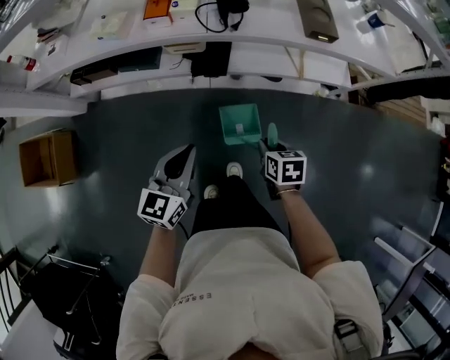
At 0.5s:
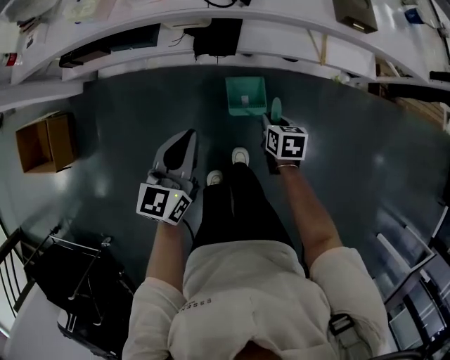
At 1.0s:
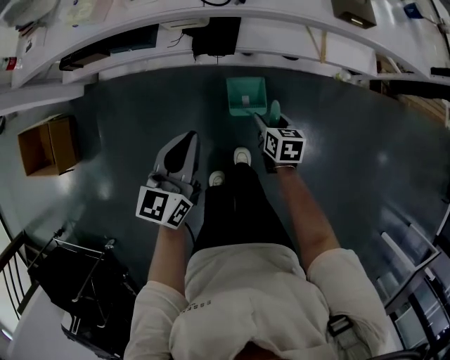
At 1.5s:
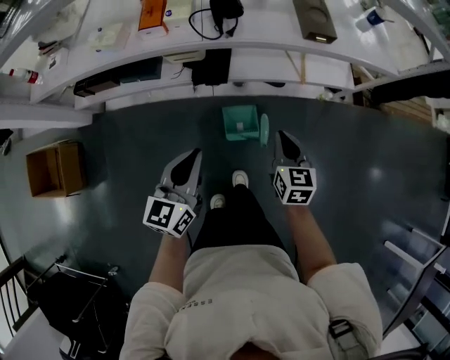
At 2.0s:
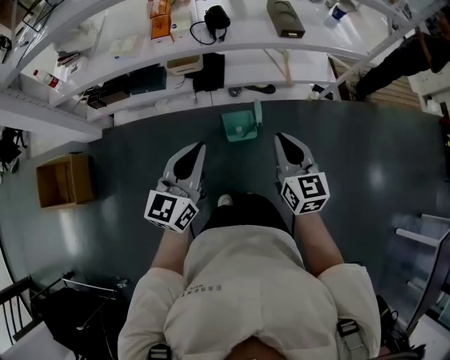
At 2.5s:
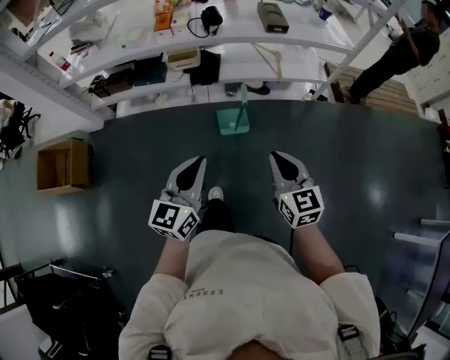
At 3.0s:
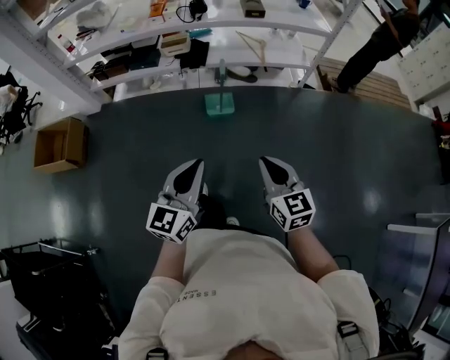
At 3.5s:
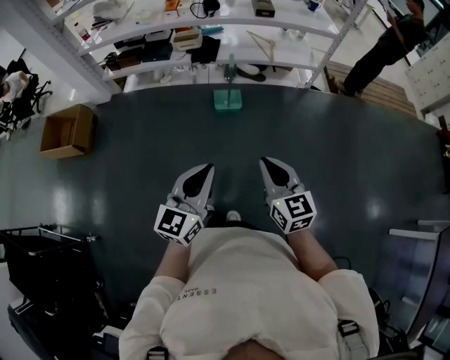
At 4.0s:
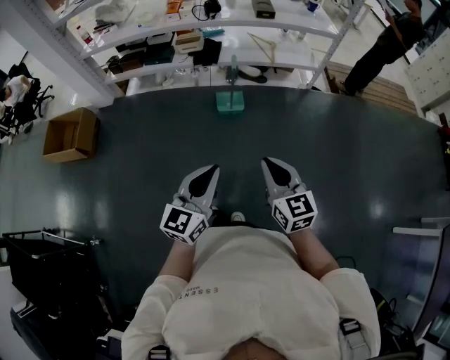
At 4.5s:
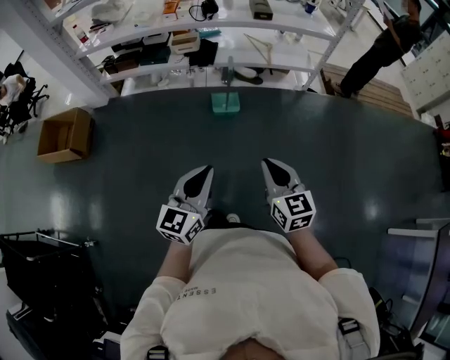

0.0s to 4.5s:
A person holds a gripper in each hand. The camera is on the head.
0.0s to 2.0s: The two grippers go roughly 20 cm upward and backward. The right gripper tips its fingers upward by about 40 degrees, and opens, then closes once more.
2.0s to 4.5s: The two grippers travel together, backward, approximately 50 cm.

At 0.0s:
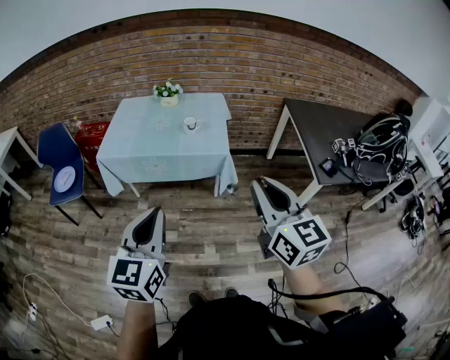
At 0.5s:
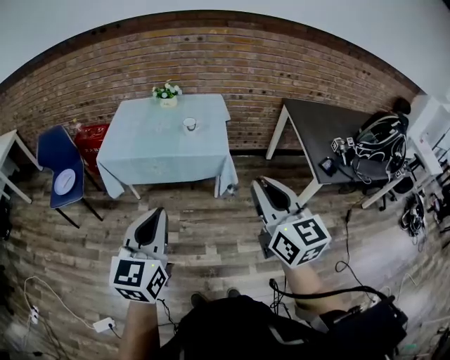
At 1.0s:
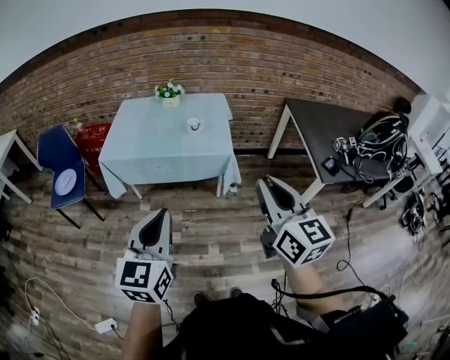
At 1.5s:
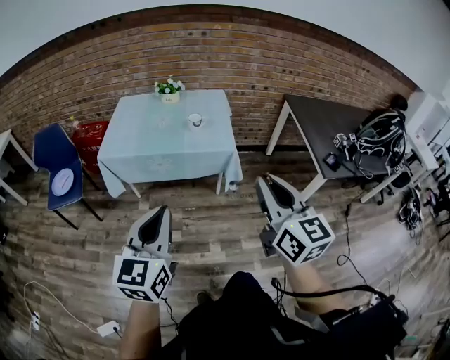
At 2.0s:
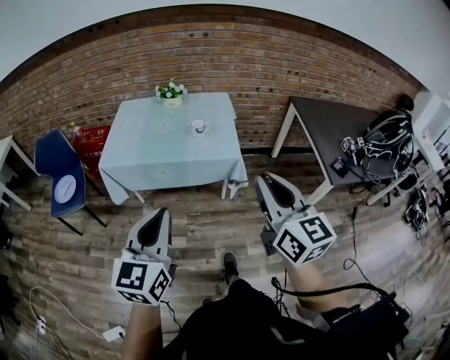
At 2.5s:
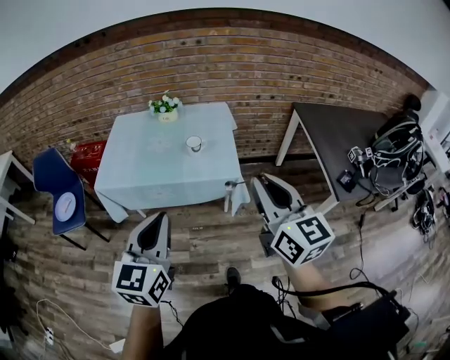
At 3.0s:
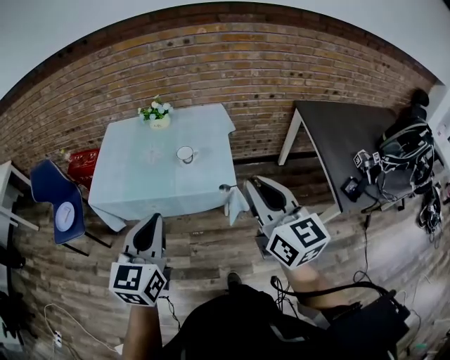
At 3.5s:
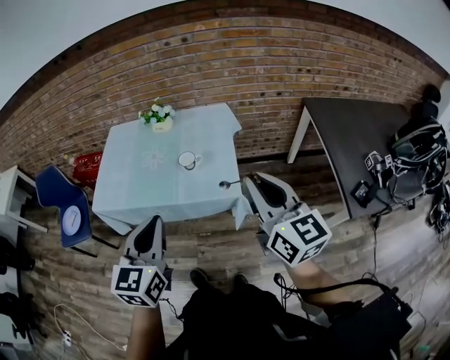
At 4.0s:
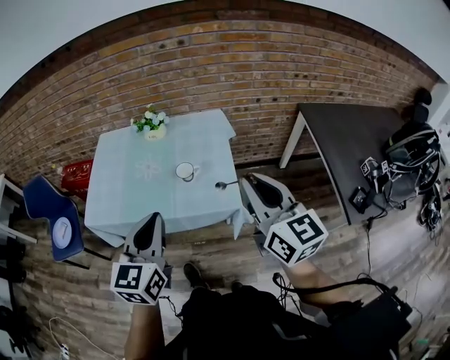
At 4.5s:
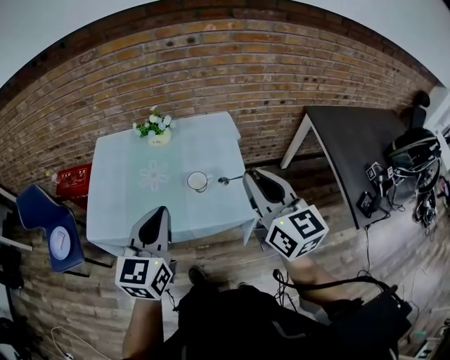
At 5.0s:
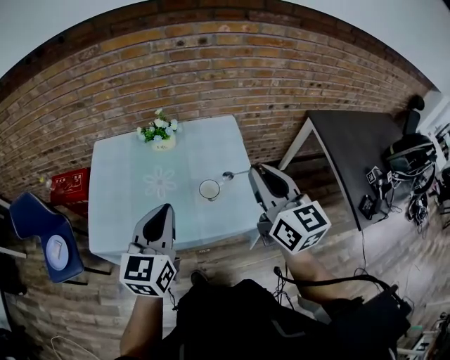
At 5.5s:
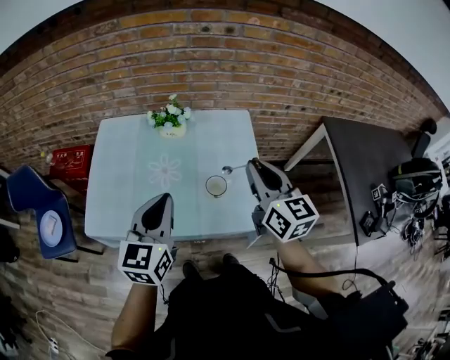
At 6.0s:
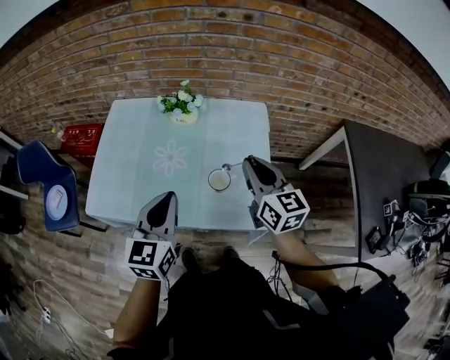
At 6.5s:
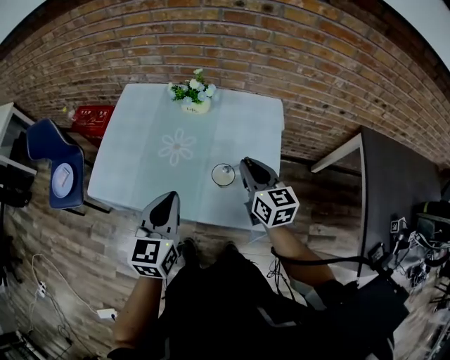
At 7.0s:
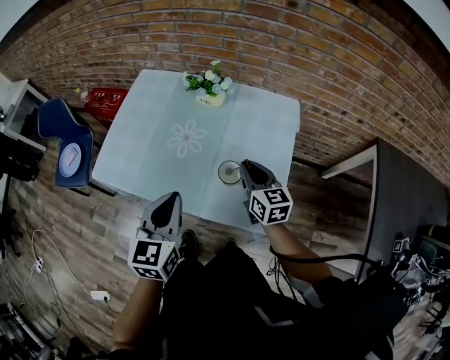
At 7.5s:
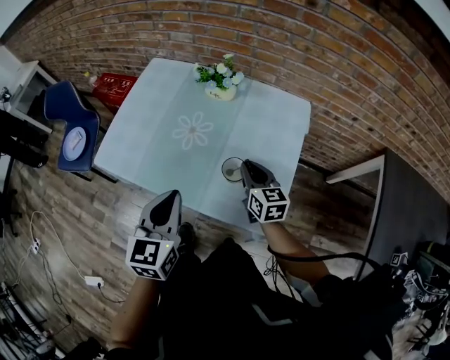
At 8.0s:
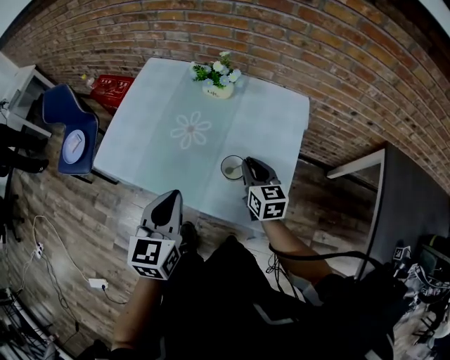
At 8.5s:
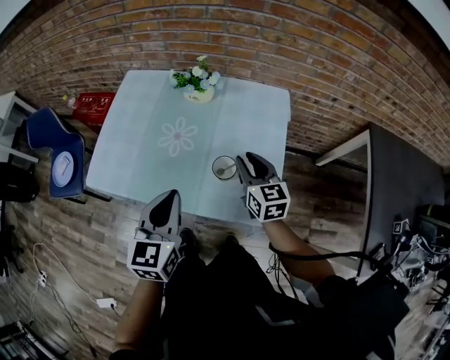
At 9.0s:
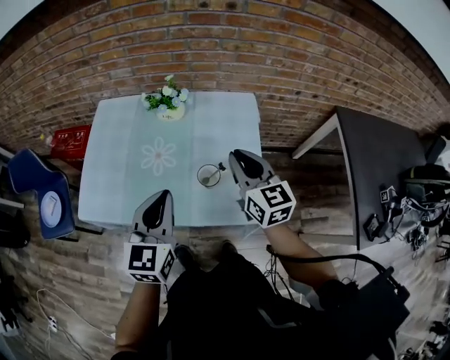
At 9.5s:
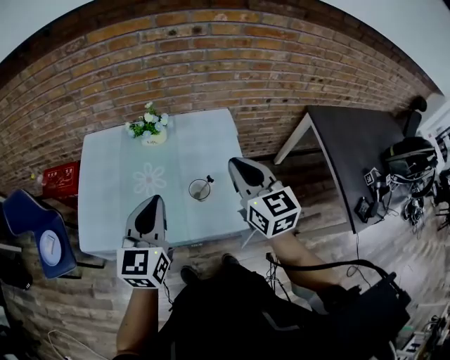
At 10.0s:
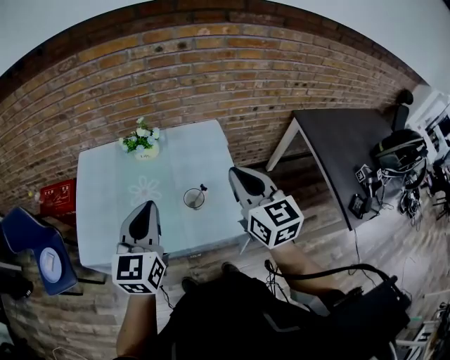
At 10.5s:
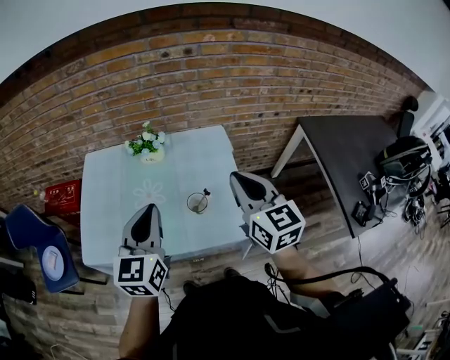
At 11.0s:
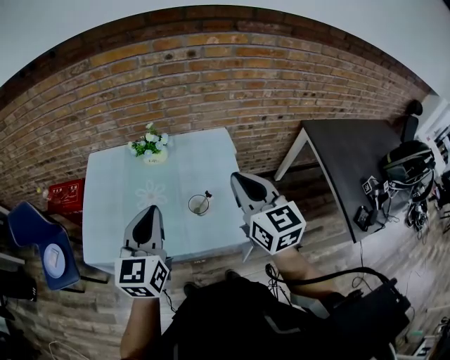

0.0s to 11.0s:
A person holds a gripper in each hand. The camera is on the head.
0.0s to 2.0s: The right gripper travels forward and to the left by about 10 cm, while the left gripper is displaced forward by about 5 cm.
2.0s to 3.5s: Both grippers move forward, approximately 25 cm.
3.5s to 5.5s: The two grippers go some 30 cm forward and to the left.
5.5s to 7.5s: The right gripper is displaced downward by about 25 cm, and swivels some 30 degrees. The left gripper heads downward, covering some 10 cm, and changes its angle by roughly 30 degrees.
7.5s to 9.0s: The left gripper changes place by roughly 5 cm. The right gripper moves upward, some 15 cm.
9.0s to 11.0s: The right gripper shifts about 15 cm upward and backward; the left gripper goes approximately 5 cm upward.

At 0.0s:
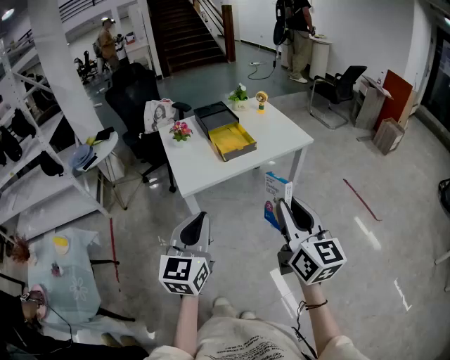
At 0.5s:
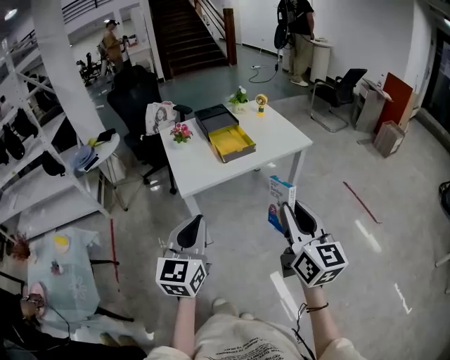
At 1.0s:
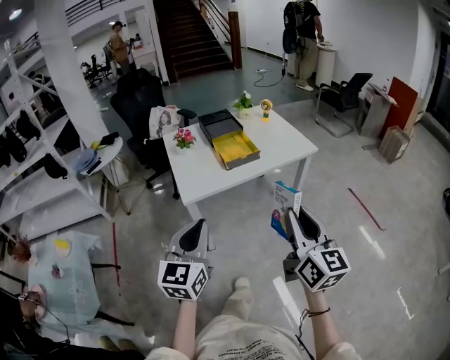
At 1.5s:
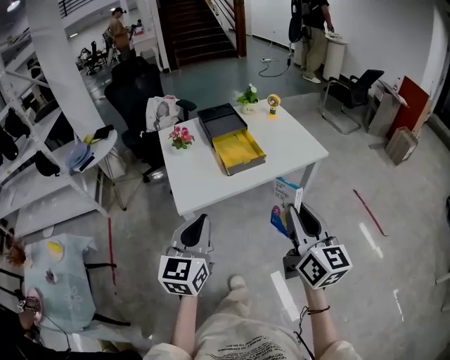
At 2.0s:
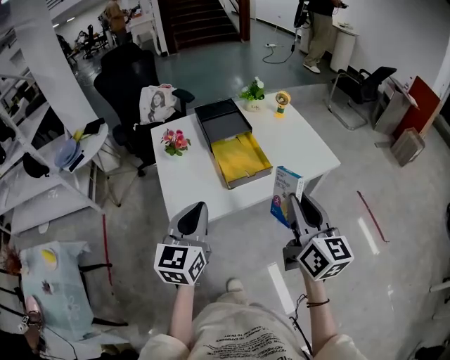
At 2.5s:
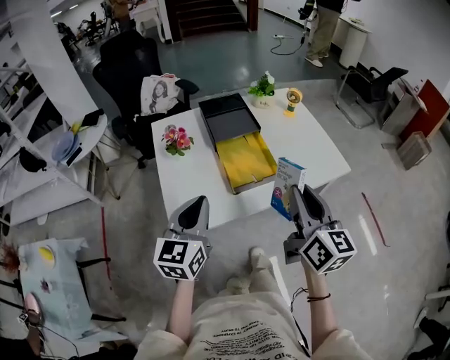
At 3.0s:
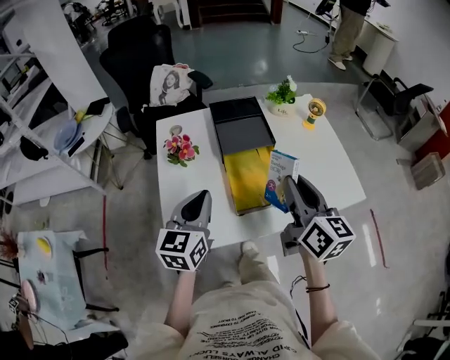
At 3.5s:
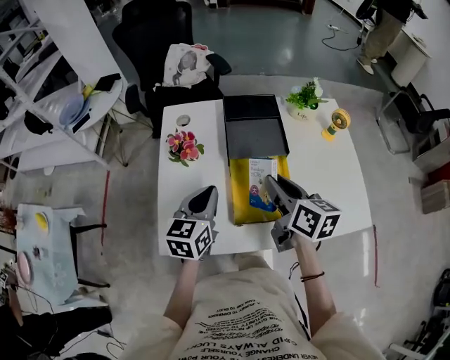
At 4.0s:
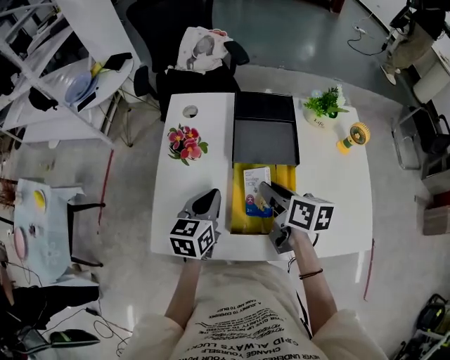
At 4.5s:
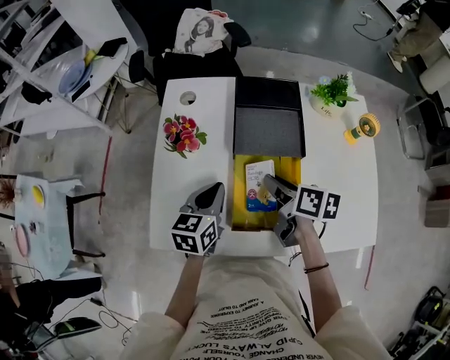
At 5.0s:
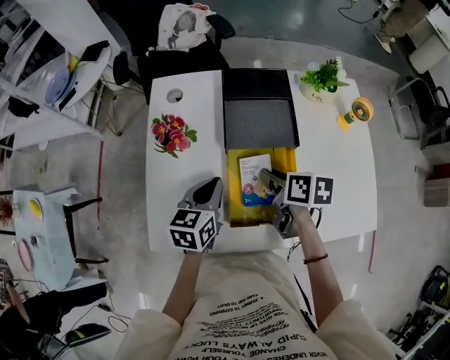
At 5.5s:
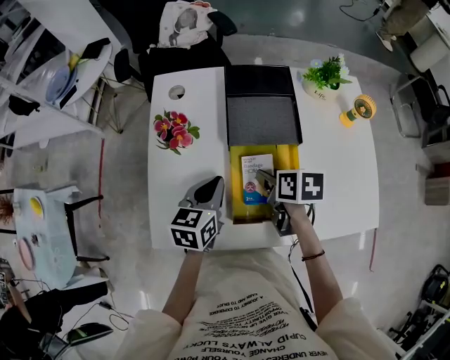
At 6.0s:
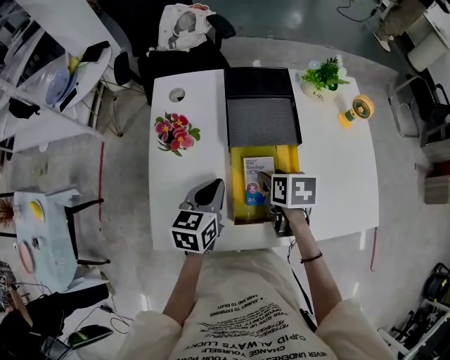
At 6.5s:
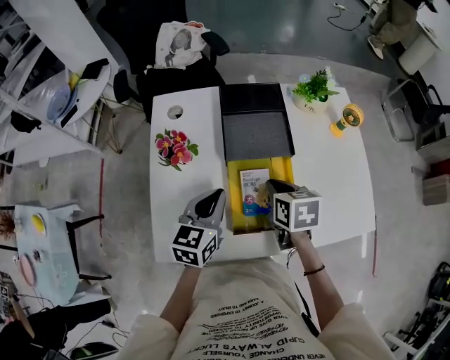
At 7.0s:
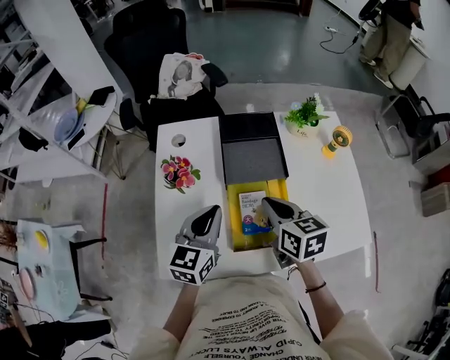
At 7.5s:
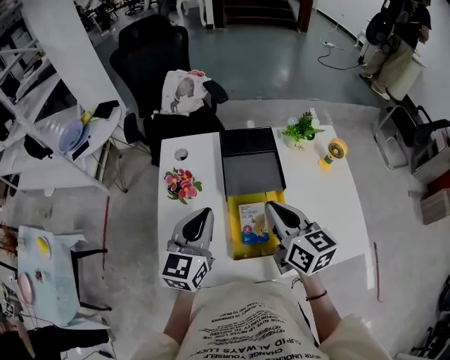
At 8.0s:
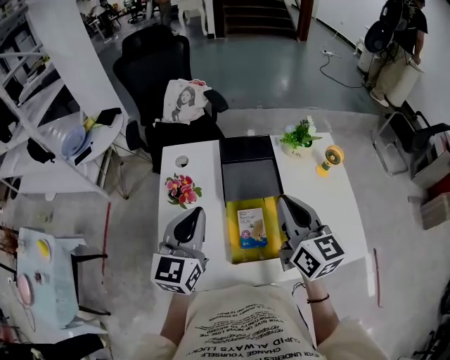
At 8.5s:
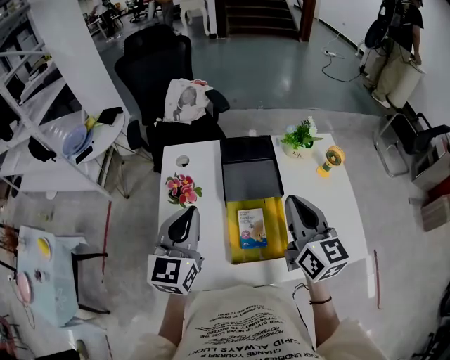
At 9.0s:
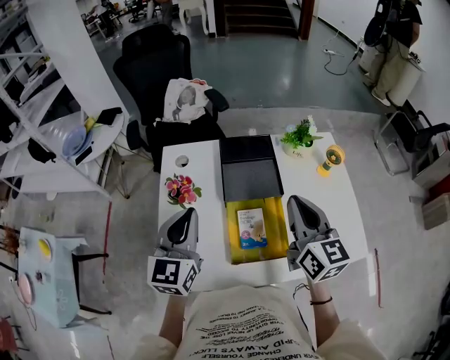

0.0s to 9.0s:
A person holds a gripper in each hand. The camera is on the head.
0.0s to 2.0s: Both grippers travel together forward, approximately 25 cm.
2.0s to 4.5s: The right gripper shifts by about 40 cm, and tips its fingers downward by about 30 degrees, while the left gripper shifts by roughly 30 cm, and changes its angle by approximately 30 degrees.
4.5s to 7.0s: The grippers both shift upward by approximately 10 cm. The left gripper rotates roughly 20 degrees. Meanwhile the right gripper changes its angle by about 30 degrees, and opens, then closes once more.
7.0s to 9.0s: The right gripper is displaced upward and to the right by roughly 15 cm, and turns by about 30 degrees. The left gripper moves upward, roughly 10 cm.

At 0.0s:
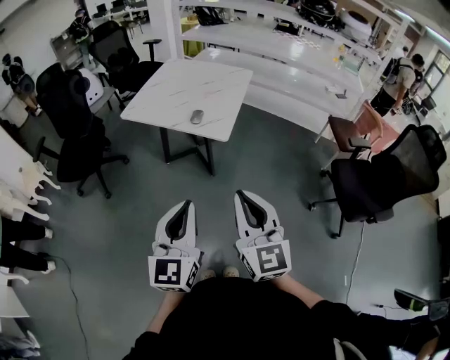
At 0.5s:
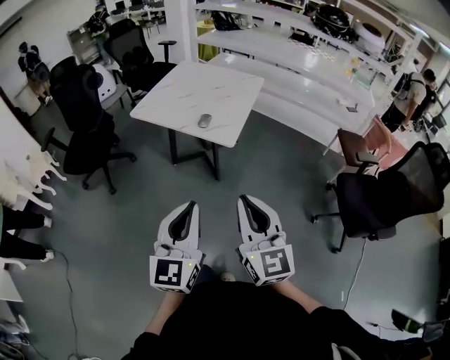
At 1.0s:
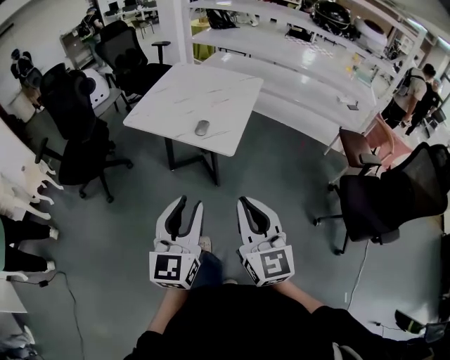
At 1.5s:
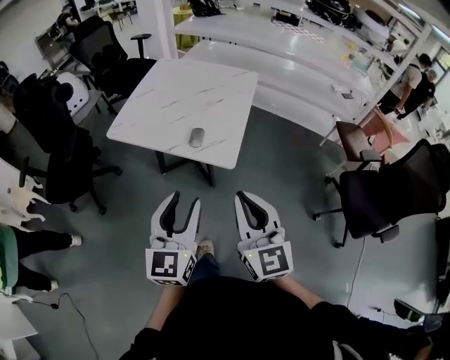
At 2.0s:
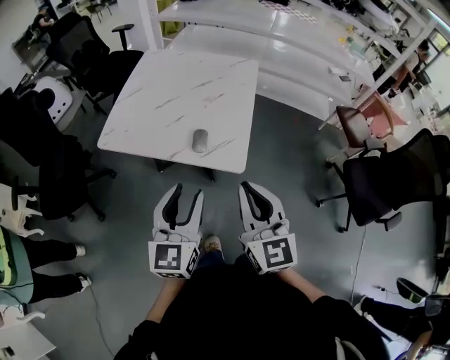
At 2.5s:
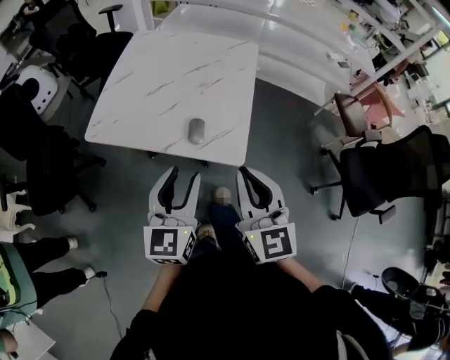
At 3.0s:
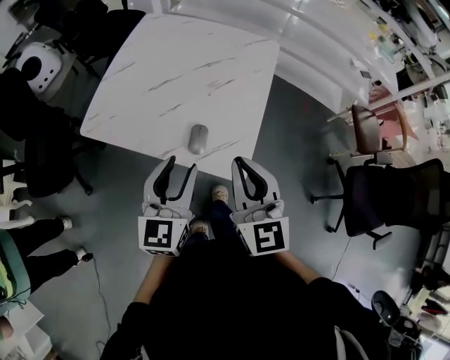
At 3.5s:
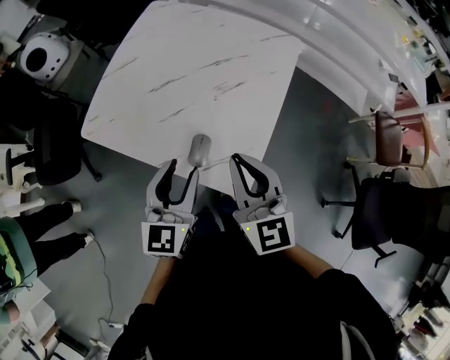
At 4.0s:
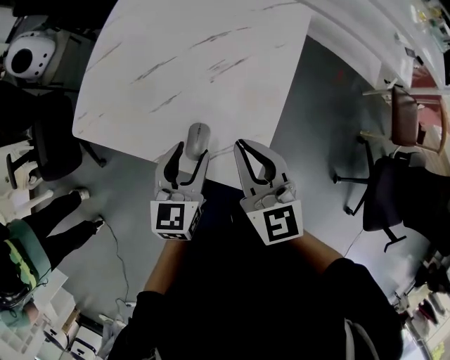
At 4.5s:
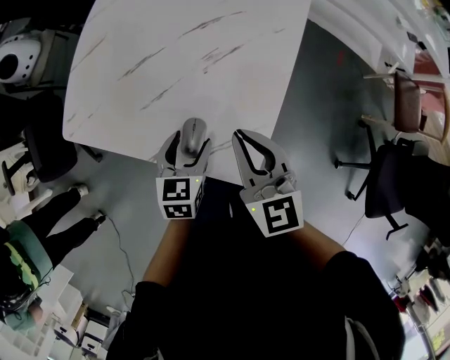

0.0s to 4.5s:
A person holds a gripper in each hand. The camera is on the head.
0.0s to 2.0s: The two grippers go approximately 30 cm forward. The left gripper opens.
2.0s to 4.5s: The two grippers go approximately 35 cm forward and downward. The left gripper tilts its fingers roughly 40 degrees downward, while the right gripper changes its angle by about 20 degrees.
